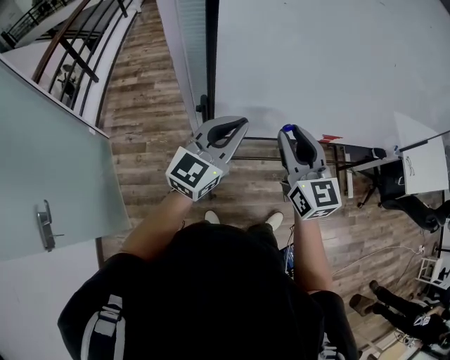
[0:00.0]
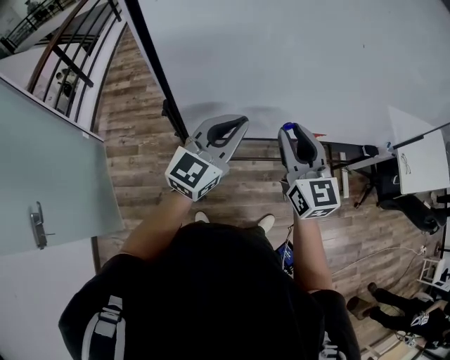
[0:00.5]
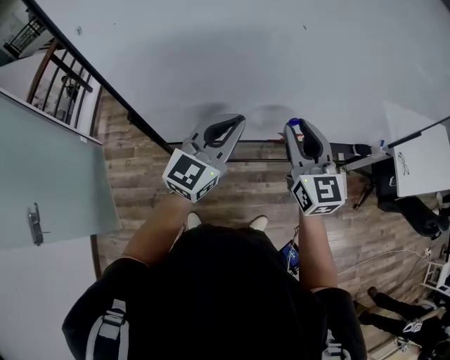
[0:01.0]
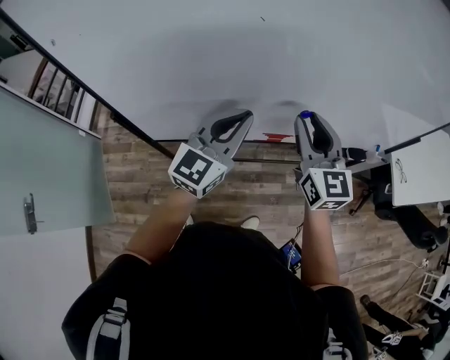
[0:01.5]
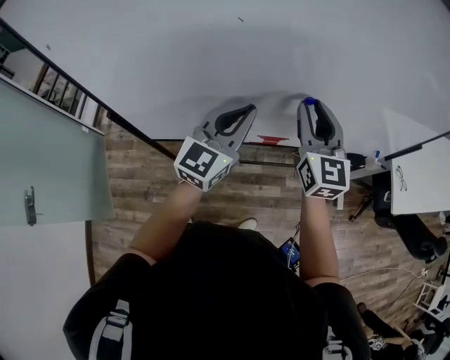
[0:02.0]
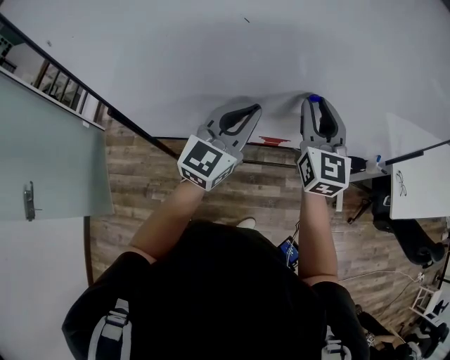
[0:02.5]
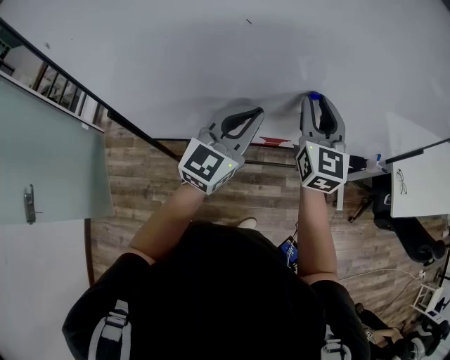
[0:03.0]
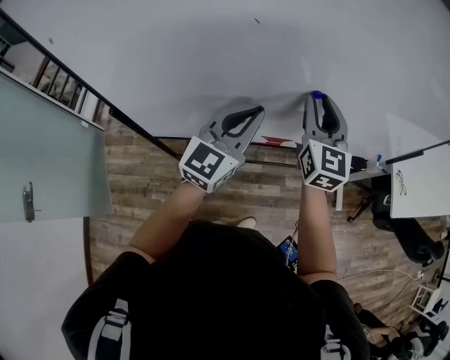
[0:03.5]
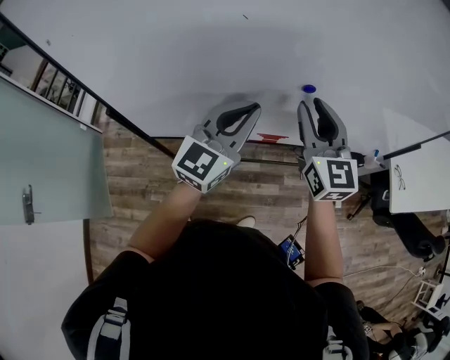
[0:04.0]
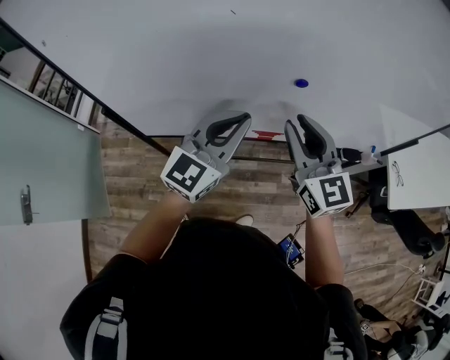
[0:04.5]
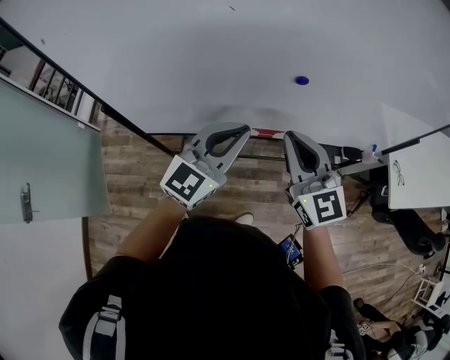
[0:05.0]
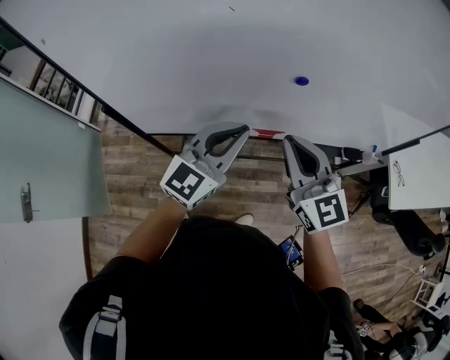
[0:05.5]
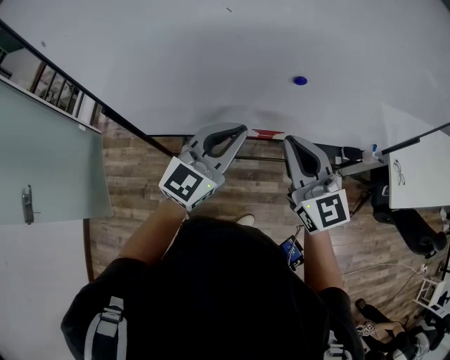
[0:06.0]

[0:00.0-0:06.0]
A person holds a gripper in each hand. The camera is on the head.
0:00.0 to 0:02.0: Both grippers travel together to the right and forward, about 40 cm.
0:02.0 to 0:04.0: The grippers stay close to where they were, moving slightly.
0:04.0 to 0:06.0: The left gripper moves backward, roughly 5 cm, while the right gripper travels backward by some 10 cm, and closes up.

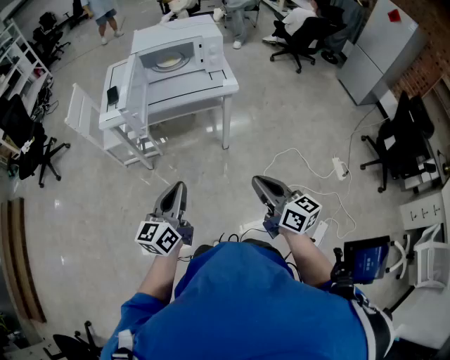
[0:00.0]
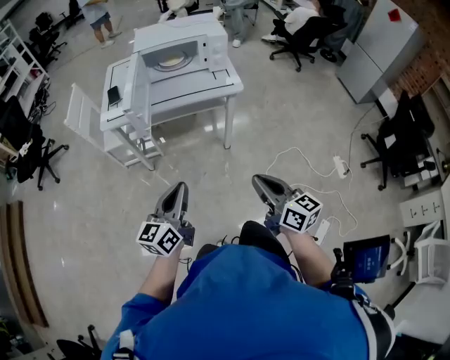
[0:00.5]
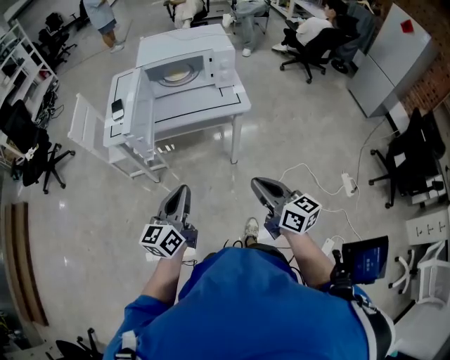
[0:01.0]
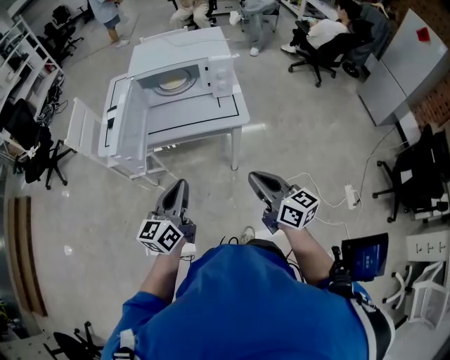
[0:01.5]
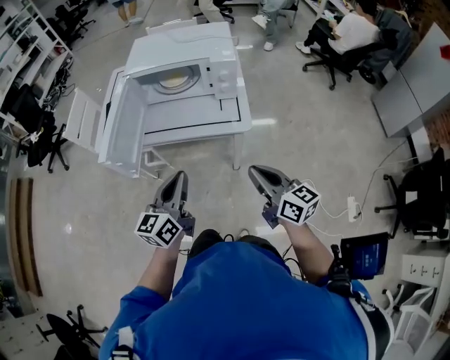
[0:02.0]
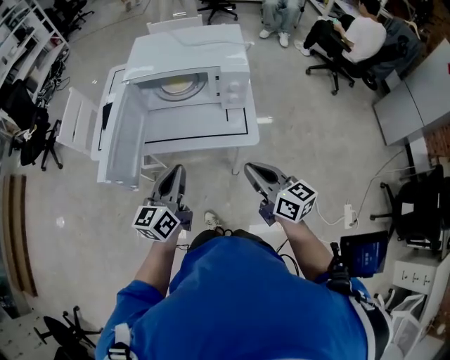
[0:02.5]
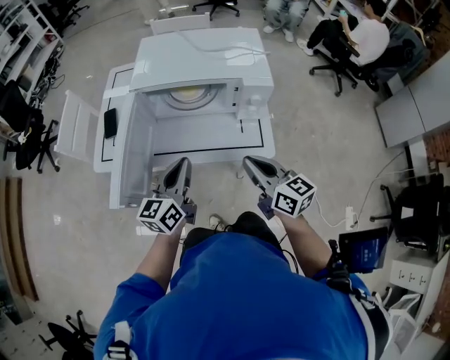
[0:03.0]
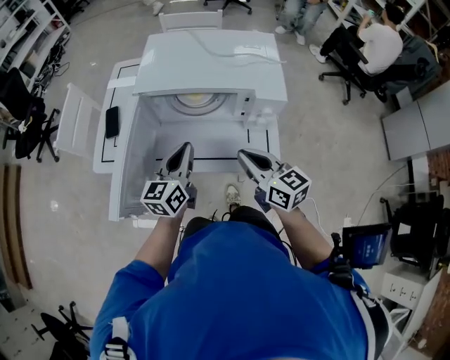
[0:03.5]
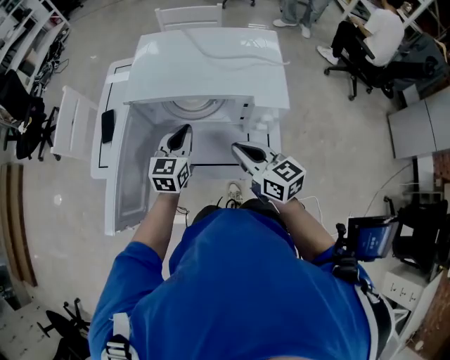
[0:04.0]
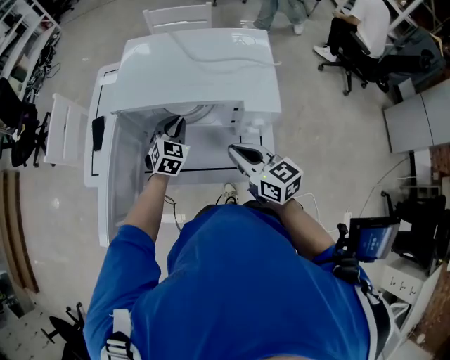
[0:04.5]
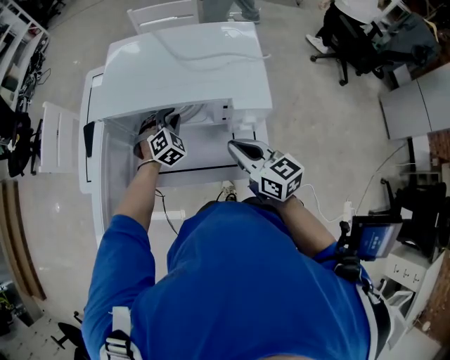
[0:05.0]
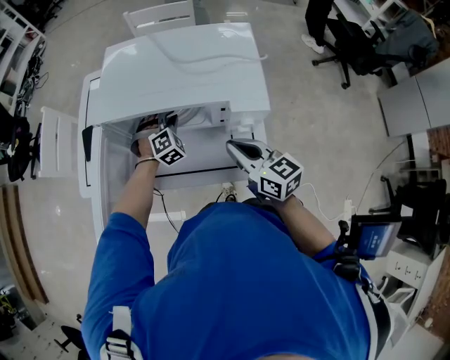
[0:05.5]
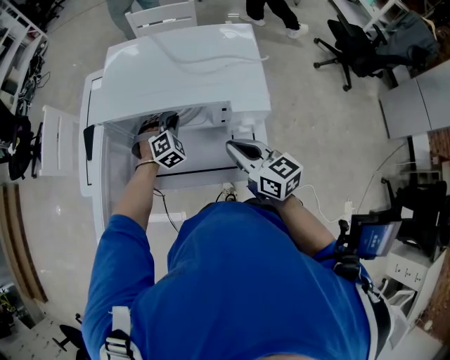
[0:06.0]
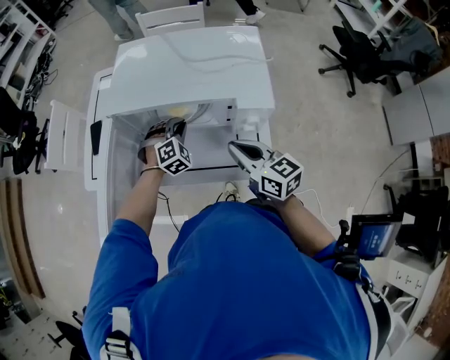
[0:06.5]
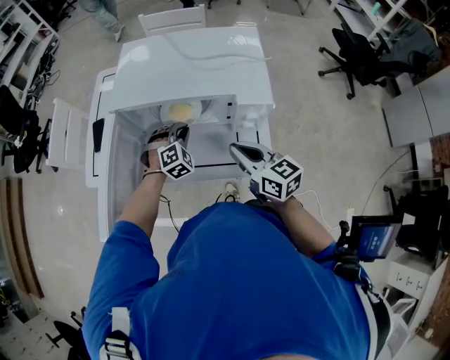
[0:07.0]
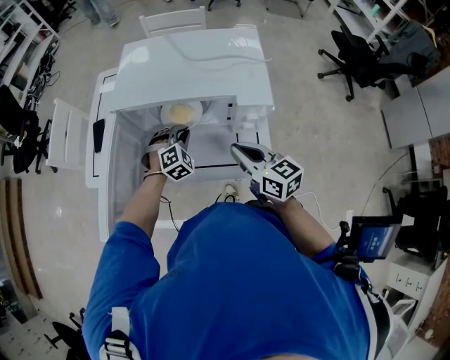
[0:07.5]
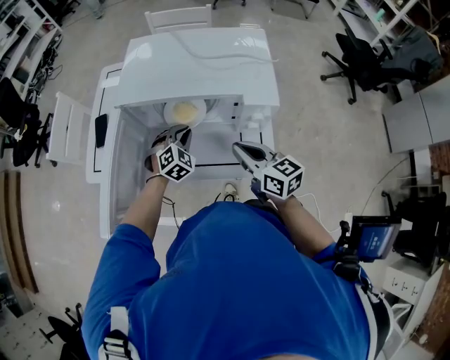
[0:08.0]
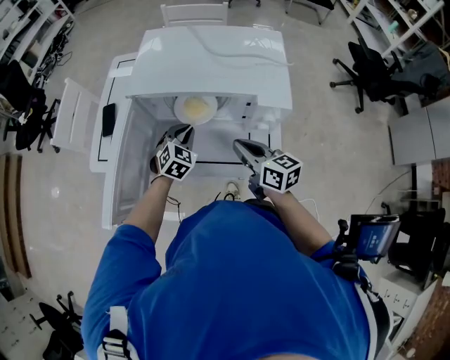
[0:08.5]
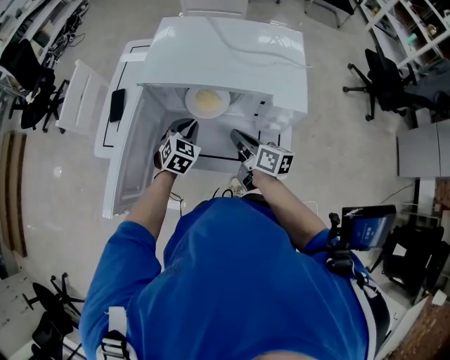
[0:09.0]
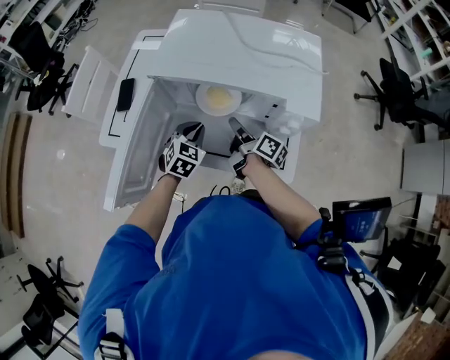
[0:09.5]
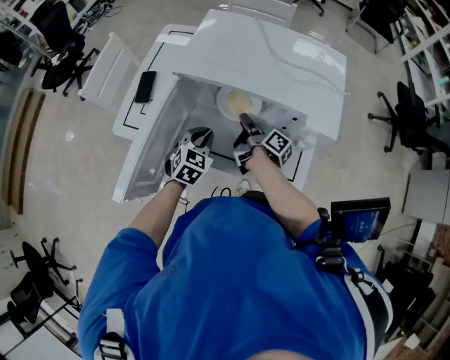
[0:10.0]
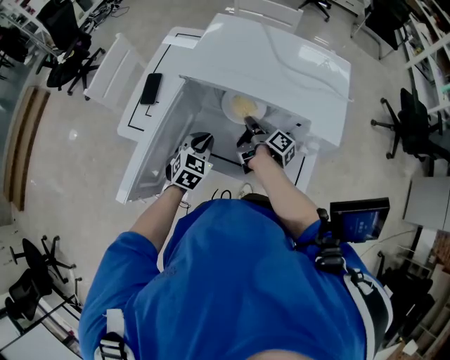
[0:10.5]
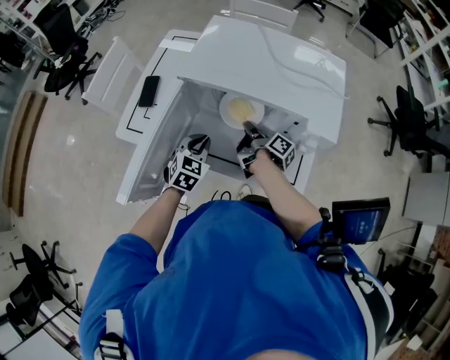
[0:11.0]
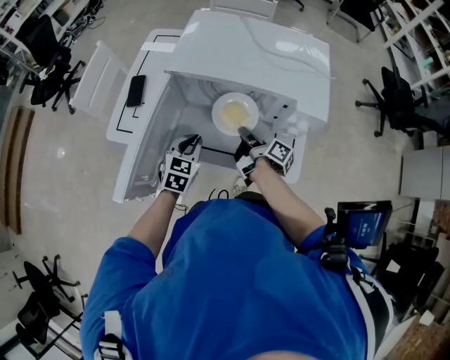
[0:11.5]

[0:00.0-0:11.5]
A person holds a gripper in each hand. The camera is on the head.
0:00.0 to 0:02.0: The left gripper moves forward and to the right, roughly 25 cm; the right gripper heads forward, covering approximately 30 cm.
0:02.0 to 0:04.0: Both grippers travel together forward, roughly 35 cm. The left gripper rotates about 20 degrees.
0:04.0 to 0:06.0: The left gripper travels downward, forward and to the right by approximately 15 cm, and twists about 60 degrees clockwise, seen from behind.
0:06.0 to 0:07.5: The left gripper heads backward, covering roughly 5 cm.
0:07.5 to 0:09.5: The left gripper is displaced to the left by some 5 cm, and rolls counterclockwise, seen from behind, by approximately 40 degrees; the right gripper is displaced forward, downward and to the left by about 15 cm, rolls clockwise, seen from behind, by roughly 50 degrees, and opens its fingers.
0:09.5 to 0:11.5: The right gripper closes its fingers; the left gripper shifts by approximately 5 cm.

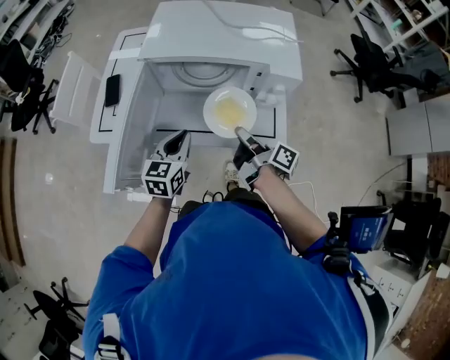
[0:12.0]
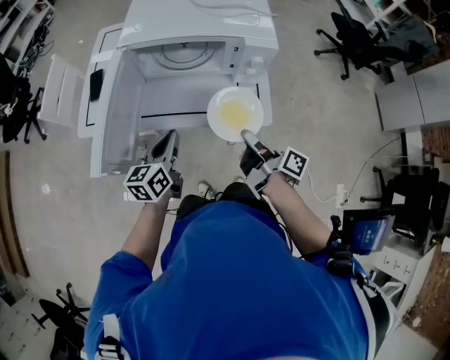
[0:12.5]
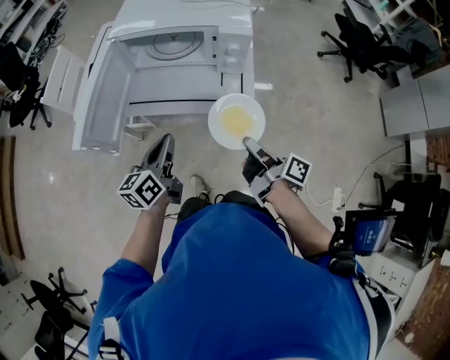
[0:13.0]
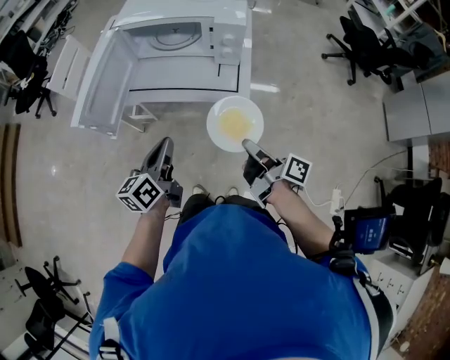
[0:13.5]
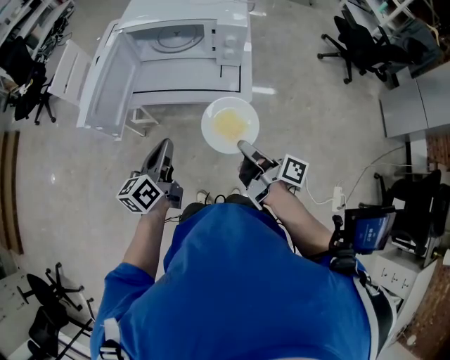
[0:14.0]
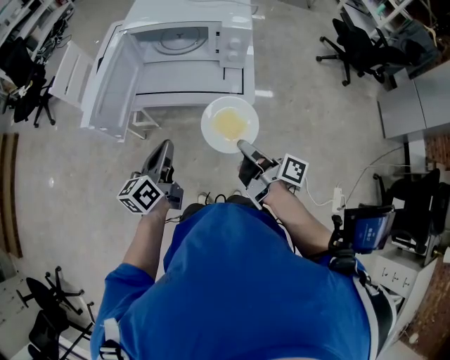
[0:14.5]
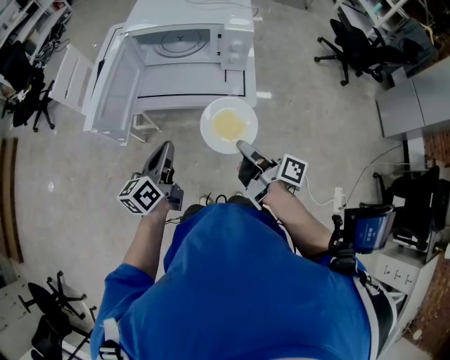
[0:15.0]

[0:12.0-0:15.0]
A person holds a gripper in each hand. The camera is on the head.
0:12.0 to 0:13.5: The right gripper shifts some 25 cm backward and to the right; the left gripper travels backward by some 20 cm, and swivels roughly 30 degrees.
0:13.5 to 0:15.0: The right gripper heads to the left, covering roughly 5 cm.

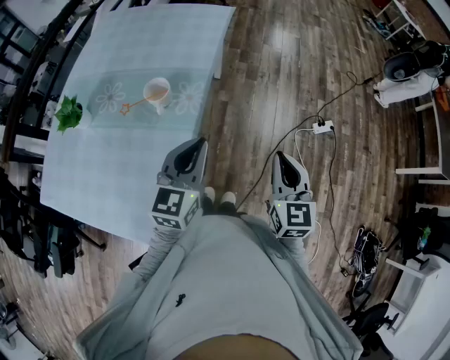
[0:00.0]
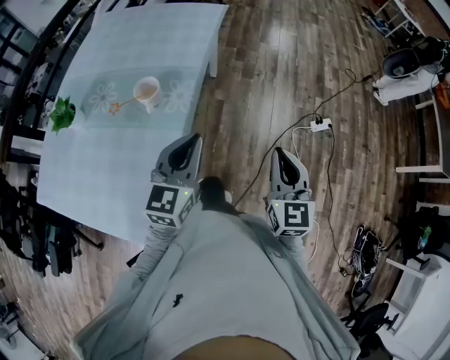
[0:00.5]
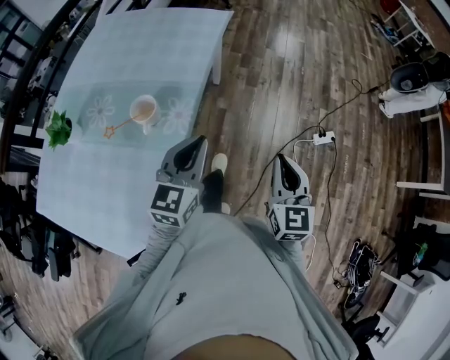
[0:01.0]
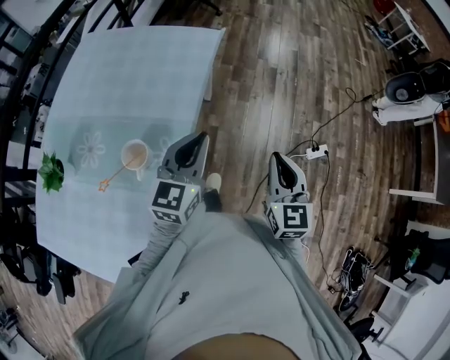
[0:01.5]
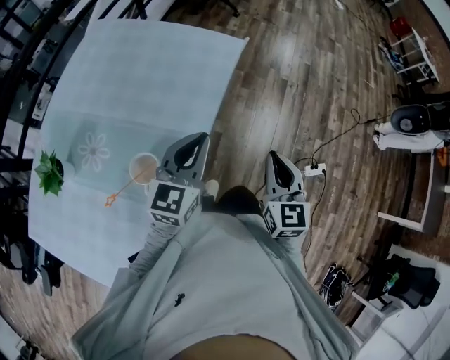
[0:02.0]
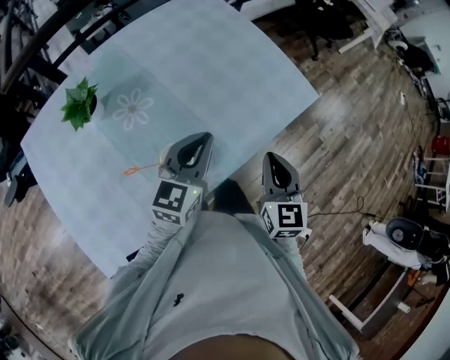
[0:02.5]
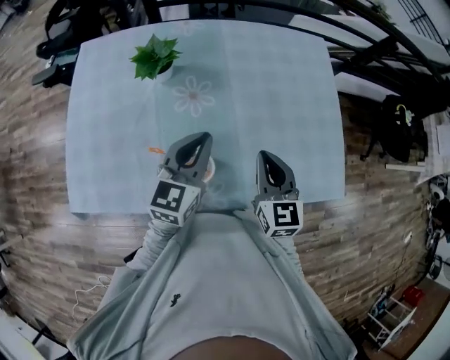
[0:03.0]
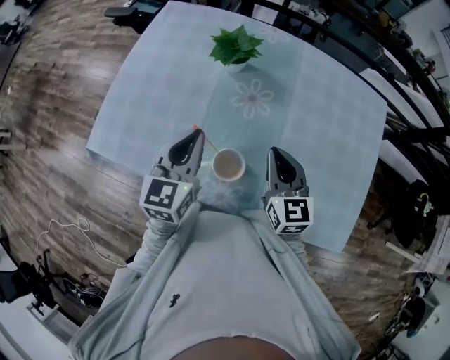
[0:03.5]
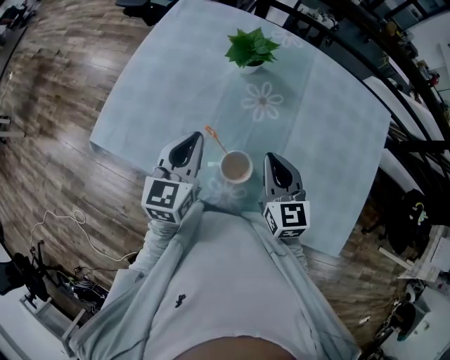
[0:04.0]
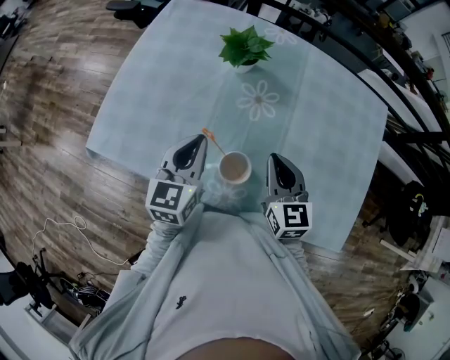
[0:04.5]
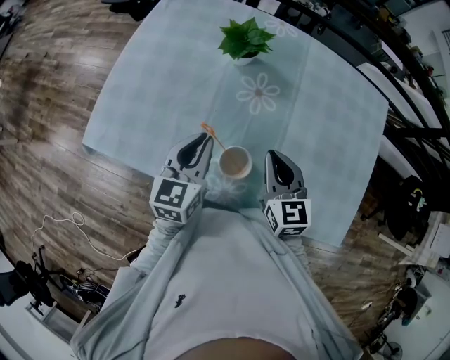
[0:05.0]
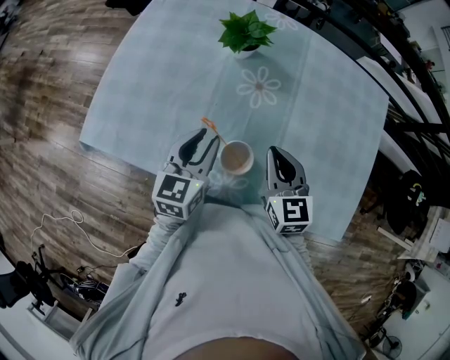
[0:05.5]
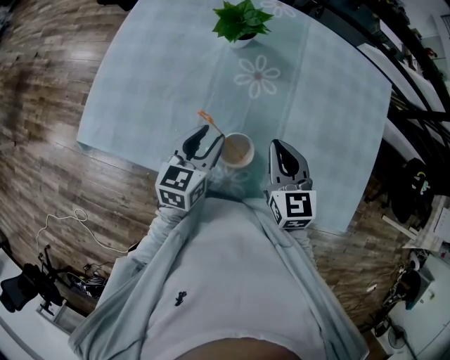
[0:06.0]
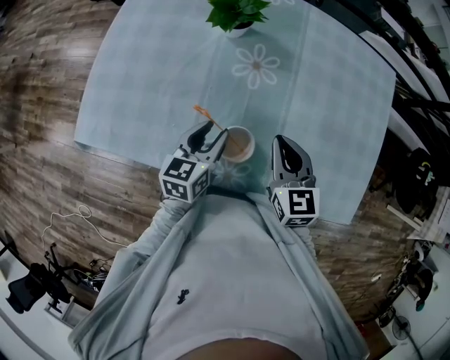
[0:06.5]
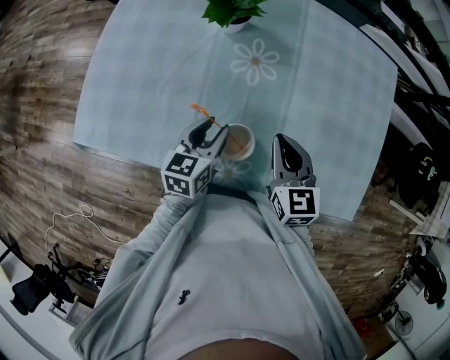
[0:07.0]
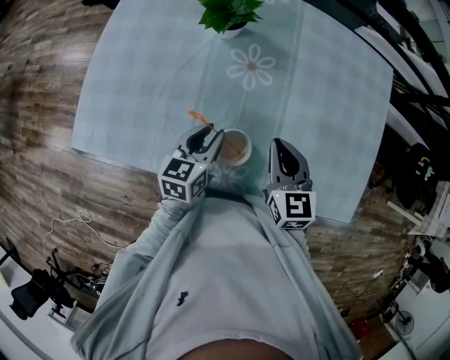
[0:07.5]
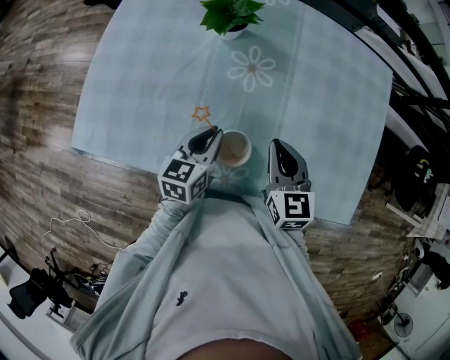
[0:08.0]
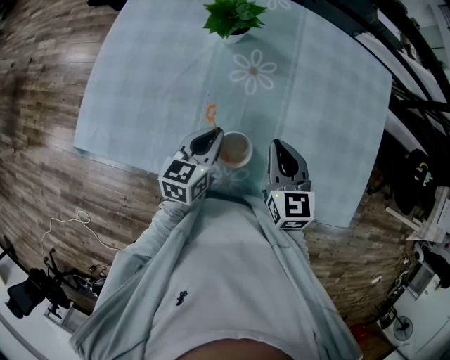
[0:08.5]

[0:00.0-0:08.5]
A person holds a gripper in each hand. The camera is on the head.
0:00.0 to 0:02.0: Both grippers travel together forward, roughly 30 cm.
0:02.0 to 0:04.0: The left gripper moves roughly 35 cm, and changes its angle by about 100 degrees. The right gripper moves approximately 40 cm, and swivels some 100 degrees.
0:04.0 to 0:06.5: The left gripper heads downward and to the right, covering about 15 cm, turns by approximately 20 degrees, and opens its fingers.
0:06.5 to 0:08.5: The left gripper closes its fingers.
